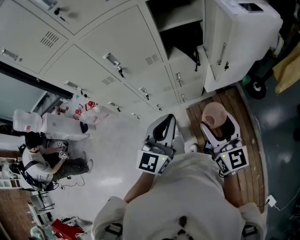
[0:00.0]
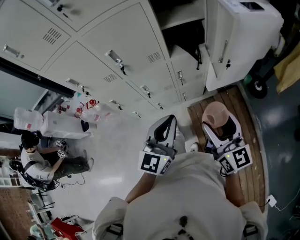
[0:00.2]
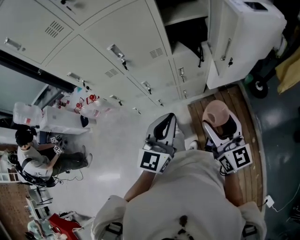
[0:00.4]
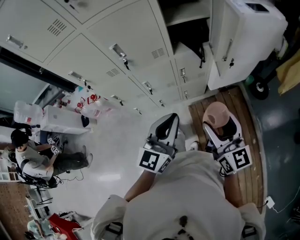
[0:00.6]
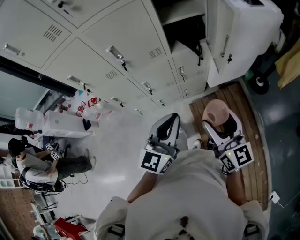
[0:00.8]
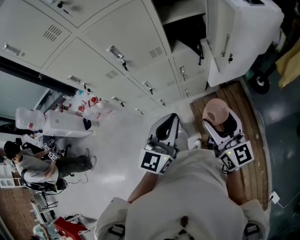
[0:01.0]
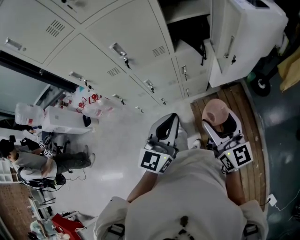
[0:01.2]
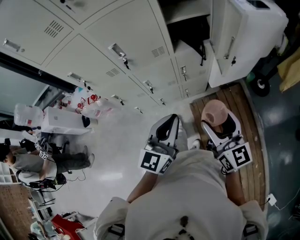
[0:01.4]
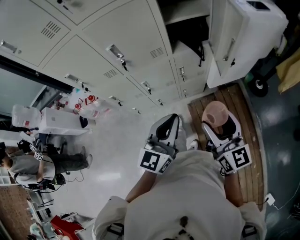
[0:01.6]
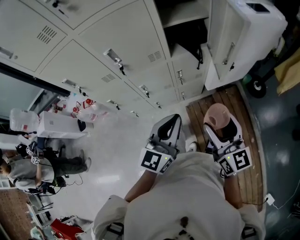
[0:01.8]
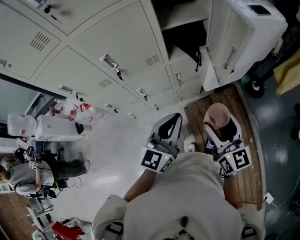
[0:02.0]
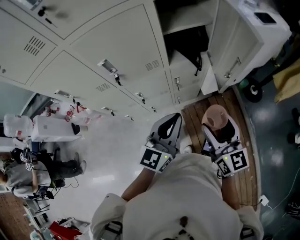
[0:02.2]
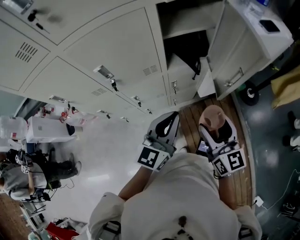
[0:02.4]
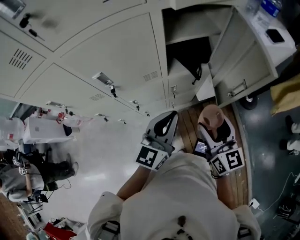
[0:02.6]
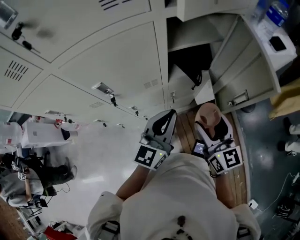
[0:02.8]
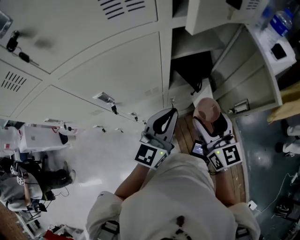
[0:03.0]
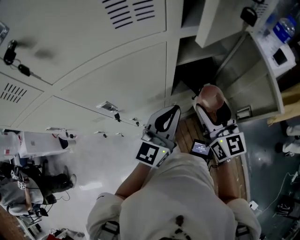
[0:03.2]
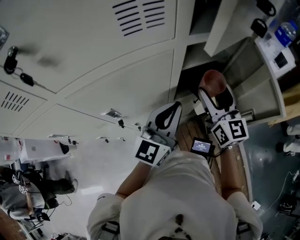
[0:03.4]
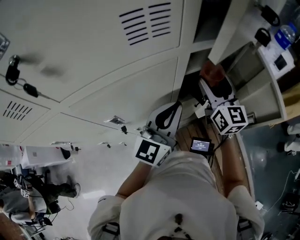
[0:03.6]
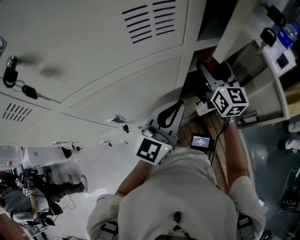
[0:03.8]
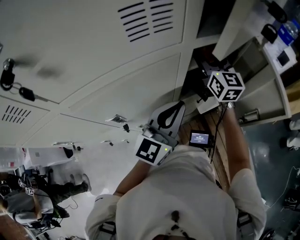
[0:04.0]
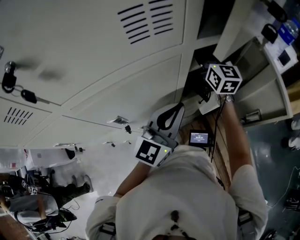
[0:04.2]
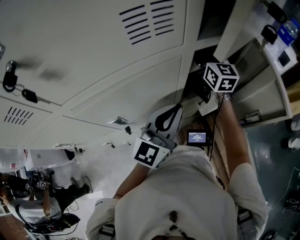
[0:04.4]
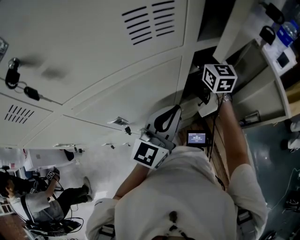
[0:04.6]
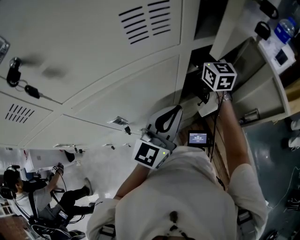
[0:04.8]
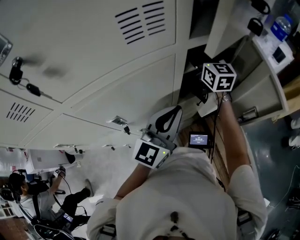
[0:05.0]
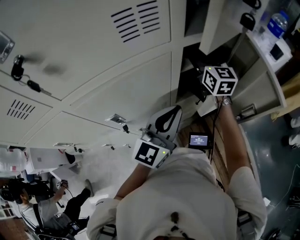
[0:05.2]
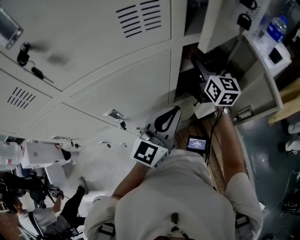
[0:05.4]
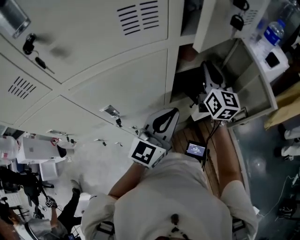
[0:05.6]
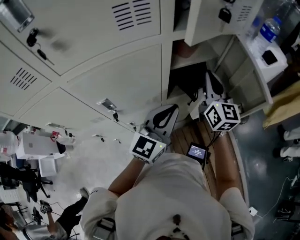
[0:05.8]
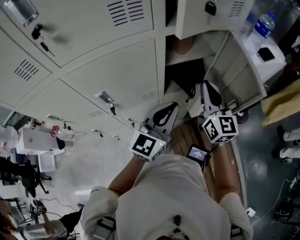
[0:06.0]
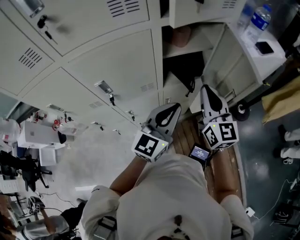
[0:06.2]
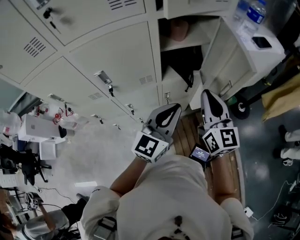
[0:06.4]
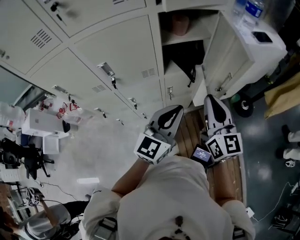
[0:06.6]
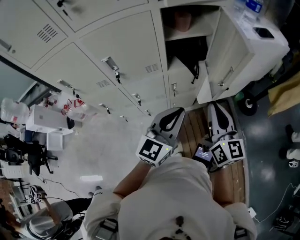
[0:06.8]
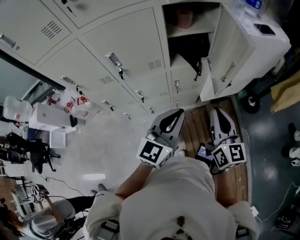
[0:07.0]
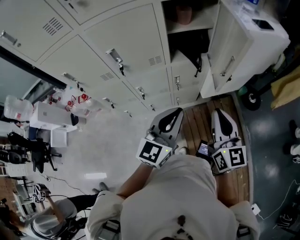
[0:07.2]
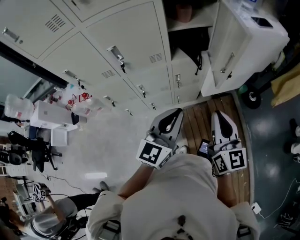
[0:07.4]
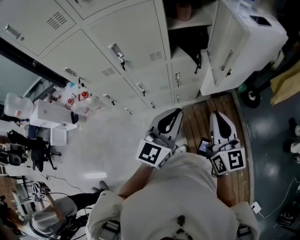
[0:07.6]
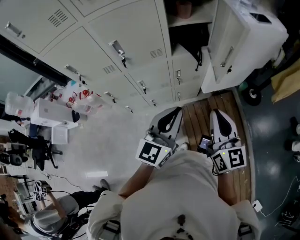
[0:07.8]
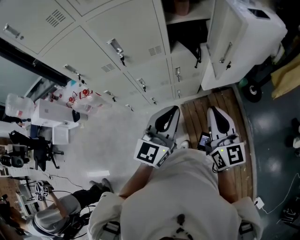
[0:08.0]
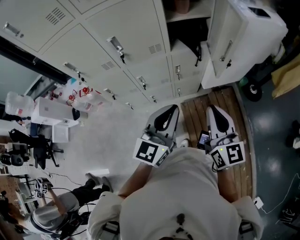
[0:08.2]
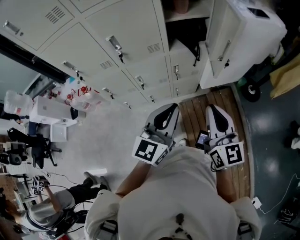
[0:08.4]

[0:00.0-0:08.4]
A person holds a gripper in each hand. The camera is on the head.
0:00.0 to 0:01.4: There are only small adjustments of the grippers.
0:01.4 to 0:02.8: Both grippers travel together forward, some 20 cm.
0:02.8 to 0:04.2: The right gripper is displaced forward by some 35 cm; the left gripper is displaced forward, upward and to the left by some 10 cm.
0:04.2 to 0:05.6: The right gripper goes approximately 10 cm backward and to the right, and closes its fingers.
0:05.6 to 0:07.0: The right gripper moves backward, some 35 cm. The left gripper heads backward and to the right, covering about 20 cm.
0:07.0 to 0:08.4: Both grippers move backward, roughly 10 cm.

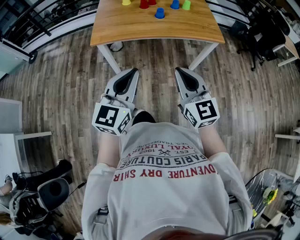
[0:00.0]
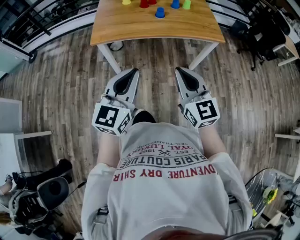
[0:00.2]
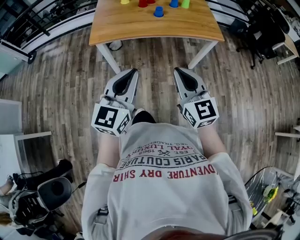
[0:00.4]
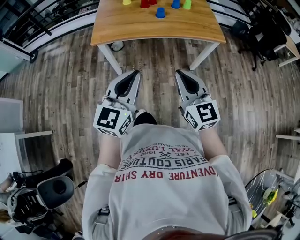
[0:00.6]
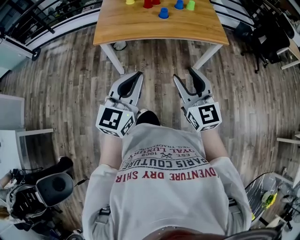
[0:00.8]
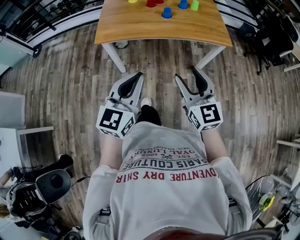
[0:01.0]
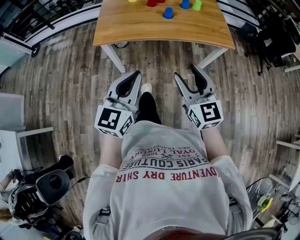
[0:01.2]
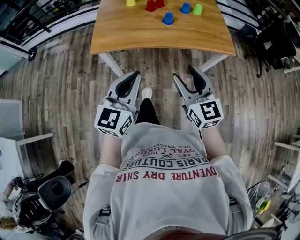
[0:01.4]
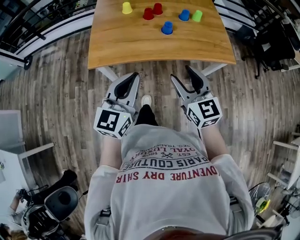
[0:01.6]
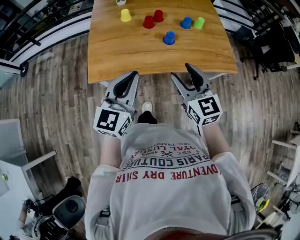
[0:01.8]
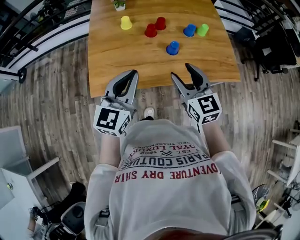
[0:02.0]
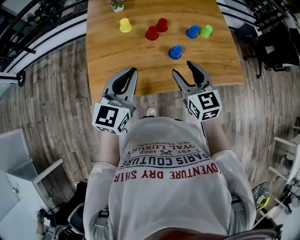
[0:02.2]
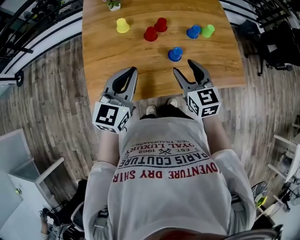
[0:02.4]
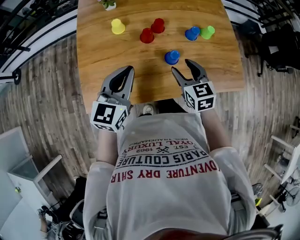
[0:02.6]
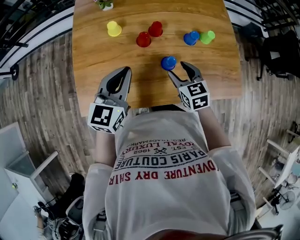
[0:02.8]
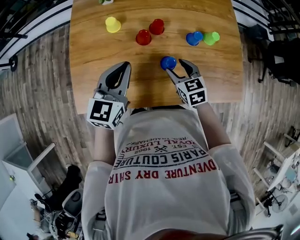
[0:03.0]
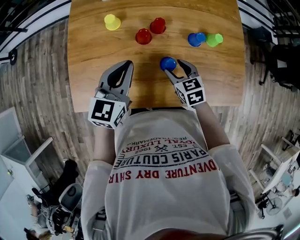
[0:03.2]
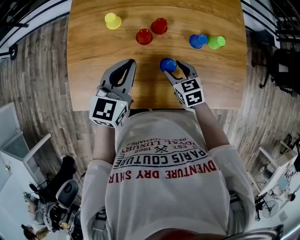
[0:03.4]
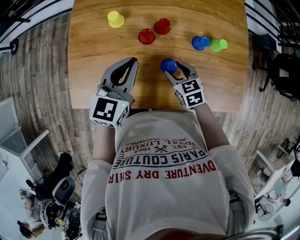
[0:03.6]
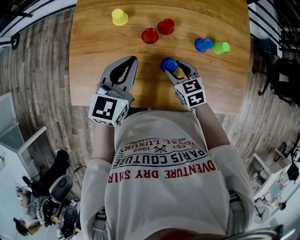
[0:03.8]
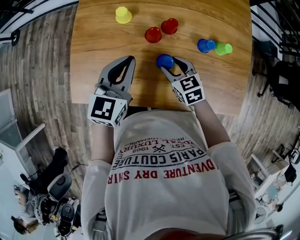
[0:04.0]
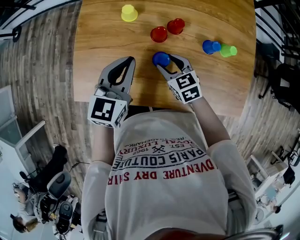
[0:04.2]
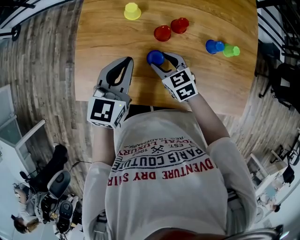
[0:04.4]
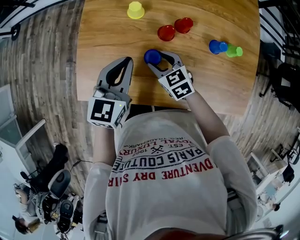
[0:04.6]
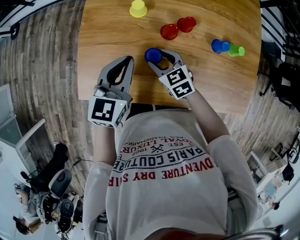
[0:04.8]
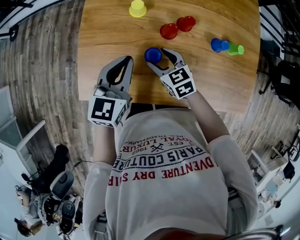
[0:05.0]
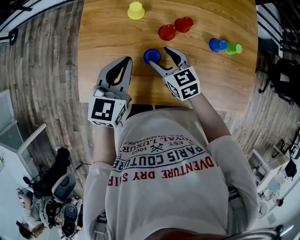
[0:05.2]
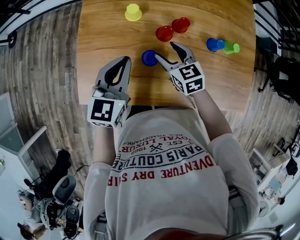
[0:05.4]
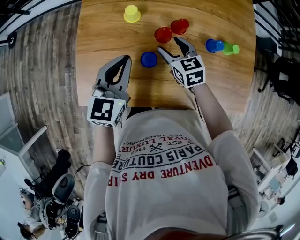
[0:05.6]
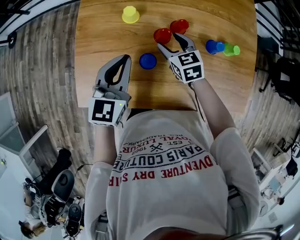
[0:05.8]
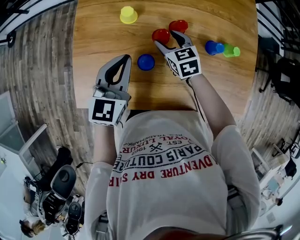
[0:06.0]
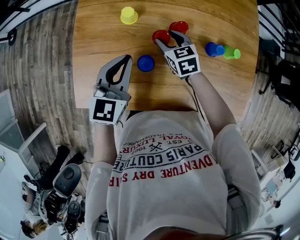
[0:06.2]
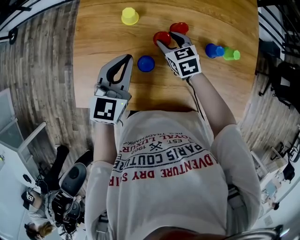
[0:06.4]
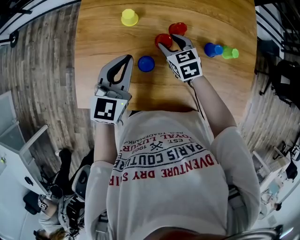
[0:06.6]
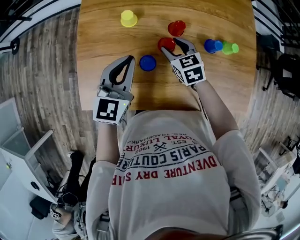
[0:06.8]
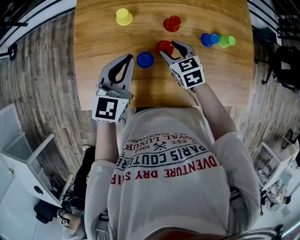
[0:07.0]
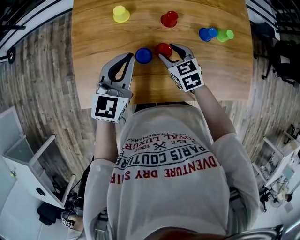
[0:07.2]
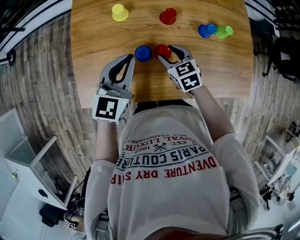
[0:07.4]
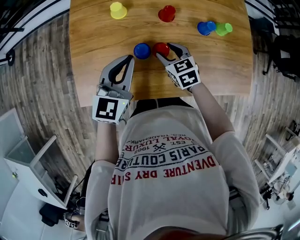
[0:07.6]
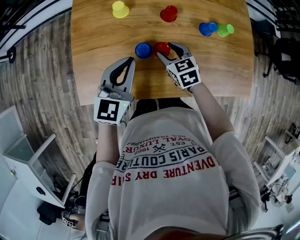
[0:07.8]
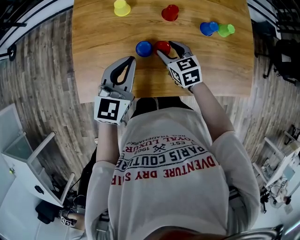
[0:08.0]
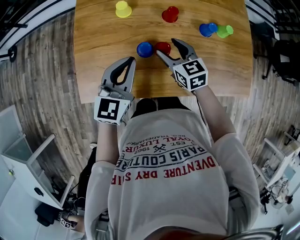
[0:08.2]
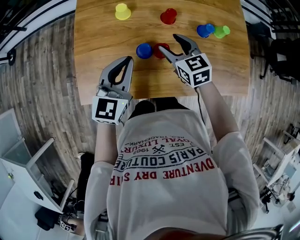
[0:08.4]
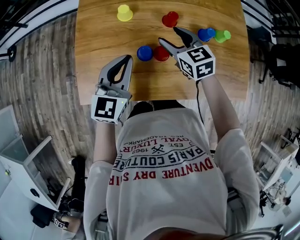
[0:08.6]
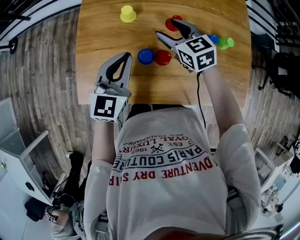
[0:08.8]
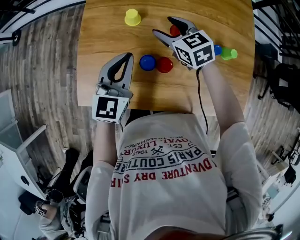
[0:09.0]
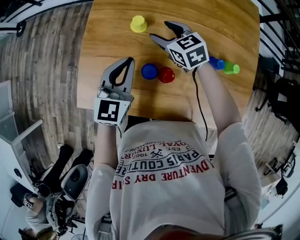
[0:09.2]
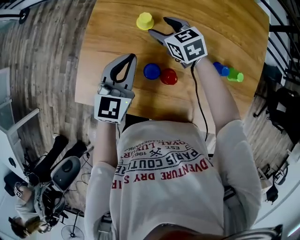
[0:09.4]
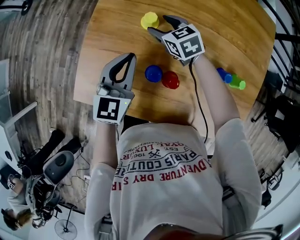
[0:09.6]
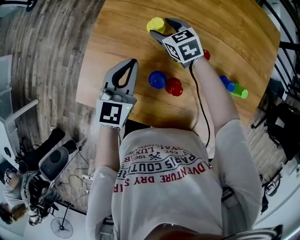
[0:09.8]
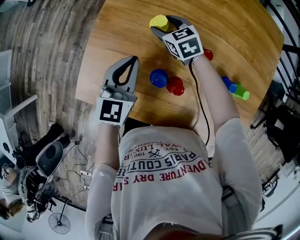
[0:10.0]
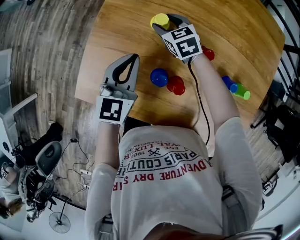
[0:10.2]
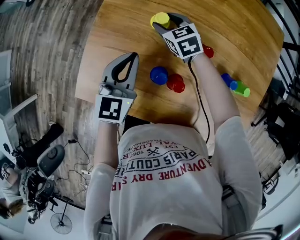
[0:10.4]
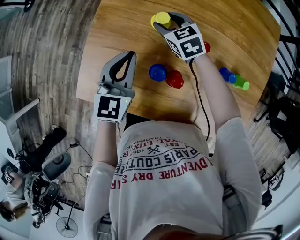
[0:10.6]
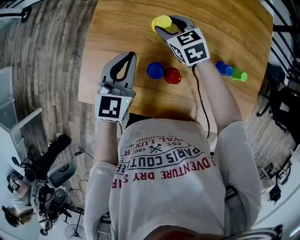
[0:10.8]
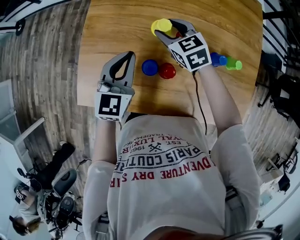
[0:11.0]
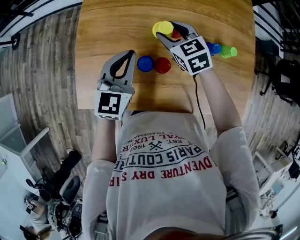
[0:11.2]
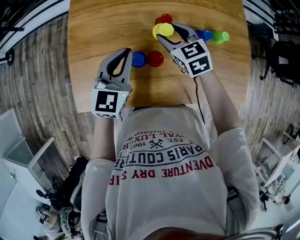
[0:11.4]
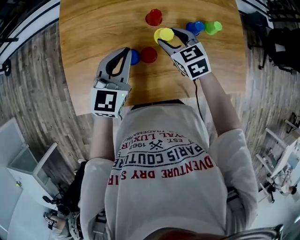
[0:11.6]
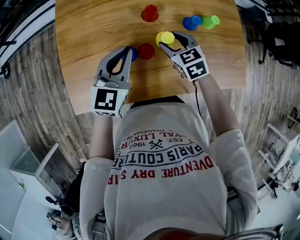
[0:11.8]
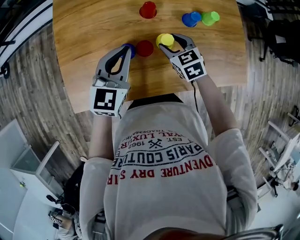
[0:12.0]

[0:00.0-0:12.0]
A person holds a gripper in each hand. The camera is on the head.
0:00.0 to 0:01.6: Both grippers travel together forward, some 20 cm. The right gripper opens its fingers.
0:01.6 to 0:03.0: The left gripper goes approximately 35 cm forward. Meanwhile the right gripper moves forward and downward, about 40 cm, and points its fingers approximately 30 degrees further downward.
0:03.0 to 0:04.4: The right gripper moves to the left, some 15 cm, and turns by approximately 20 degrees. The left gripper is displaced to the left by some 5 cm.
0:04.4 to 0:06.0: The right gripper is displaced forward by about 10 cm.
0:06.0 to 0:07.6: The right gripper is displaced backward by about 10 cm; the left gripper goes roughly 5 cm backward.
0:07.6 to 0:09.0: The right gripper shifts about 15 cm forward and upward. Meanwhile the left gripper goes about 5 cm forward.
0:09.0 to 0:10.4: The left gripper goes approximately 5 cm forward, while the right gripper heads forward, downward and to the left, covering about 15 cm.
0:10.4 to 0:12.0: The left gripper shifts by roughly 15 cm, and changes its angle by approximately 30 degrees. The right gripper goes upward and returns, approximately 10 cm each way, and changes its angle by roughly 30 degrees.

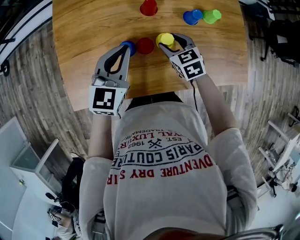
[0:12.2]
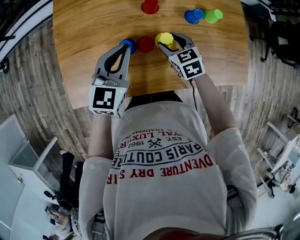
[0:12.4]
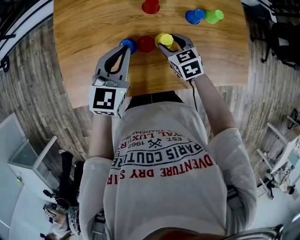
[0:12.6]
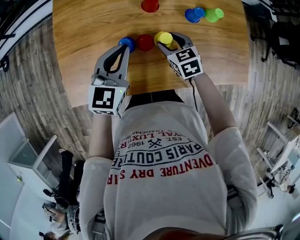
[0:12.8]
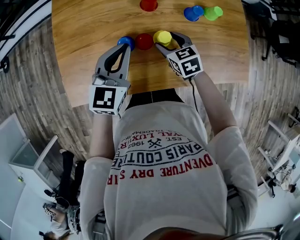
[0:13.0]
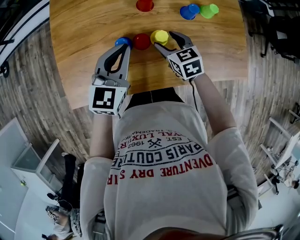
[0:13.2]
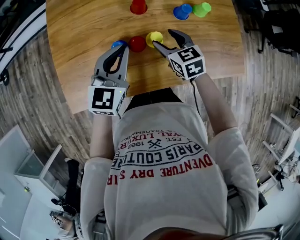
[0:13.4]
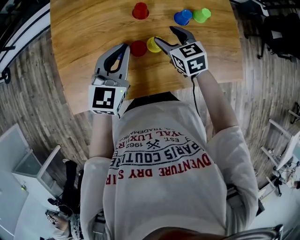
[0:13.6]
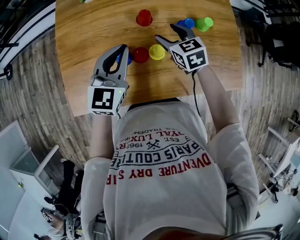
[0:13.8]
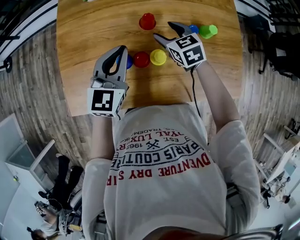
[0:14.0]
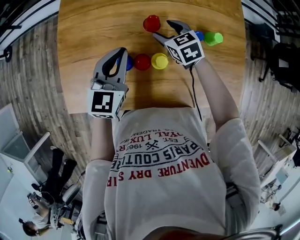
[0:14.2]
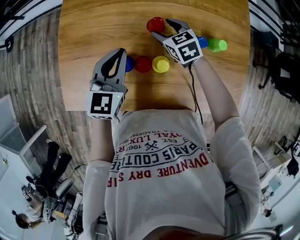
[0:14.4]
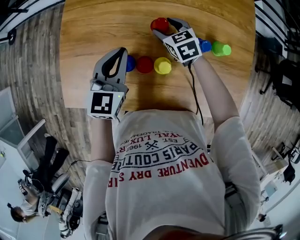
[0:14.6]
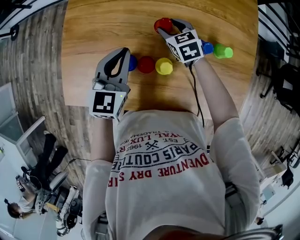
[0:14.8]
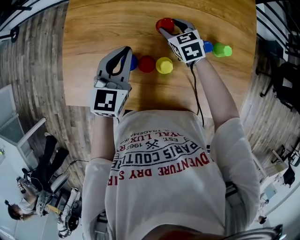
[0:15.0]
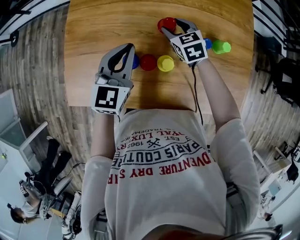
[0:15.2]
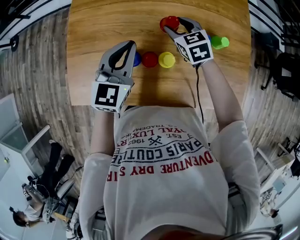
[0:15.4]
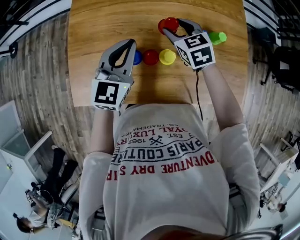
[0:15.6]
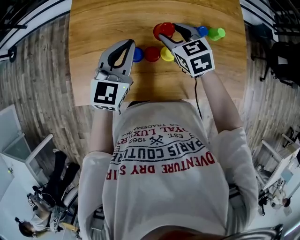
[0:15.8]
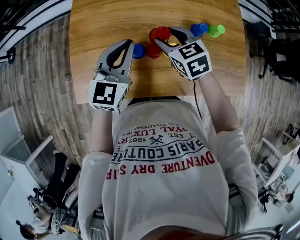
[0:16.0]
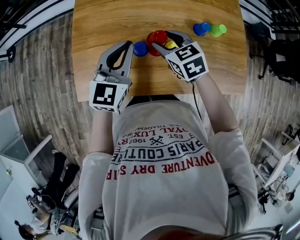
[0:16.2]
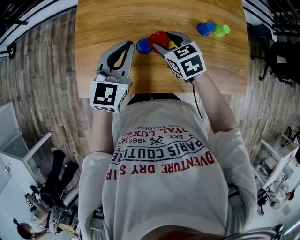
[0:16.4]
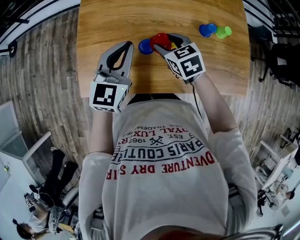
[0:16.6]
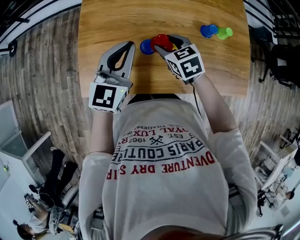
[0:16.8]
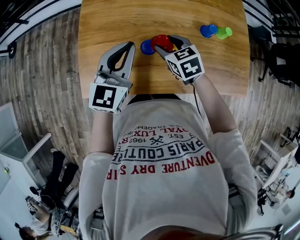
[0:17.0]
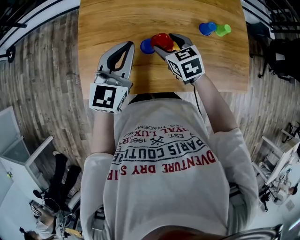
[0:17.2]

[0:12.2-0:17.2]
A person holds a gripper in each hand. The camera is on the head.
0:12.2 to 0:13.8: The right gripper moves forward and upward, about 10 cm.
0:15.6 to 0:17.2: The left gripper goes about 10 cm to the left; the right gripper moves to the left and backward, approximately 15 cm.
